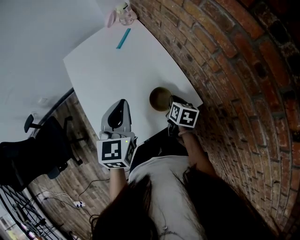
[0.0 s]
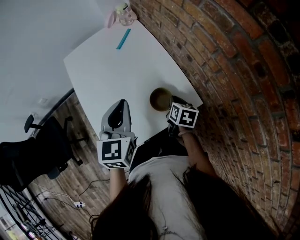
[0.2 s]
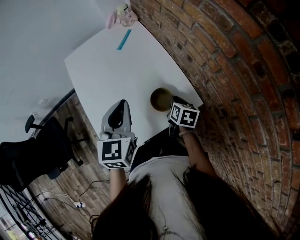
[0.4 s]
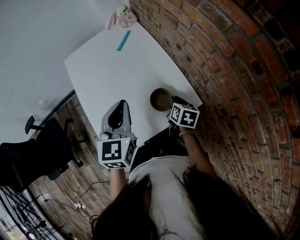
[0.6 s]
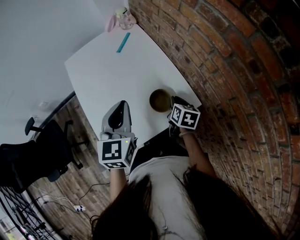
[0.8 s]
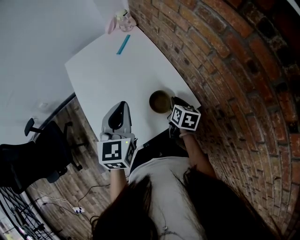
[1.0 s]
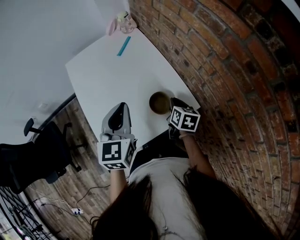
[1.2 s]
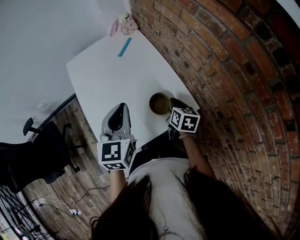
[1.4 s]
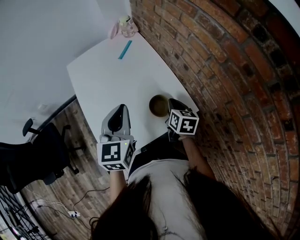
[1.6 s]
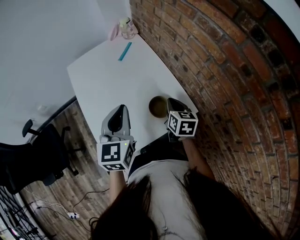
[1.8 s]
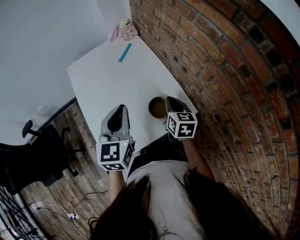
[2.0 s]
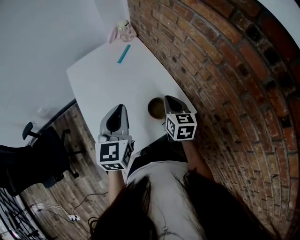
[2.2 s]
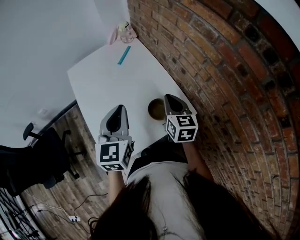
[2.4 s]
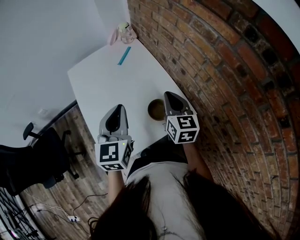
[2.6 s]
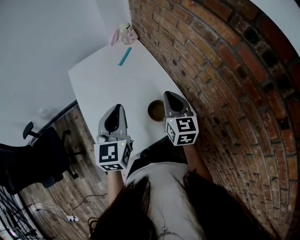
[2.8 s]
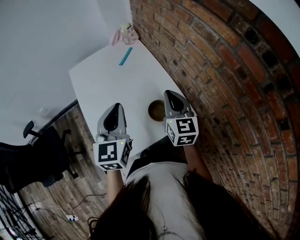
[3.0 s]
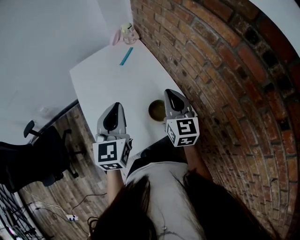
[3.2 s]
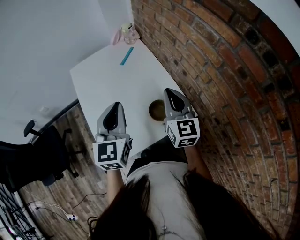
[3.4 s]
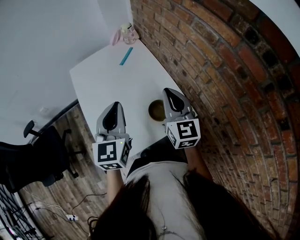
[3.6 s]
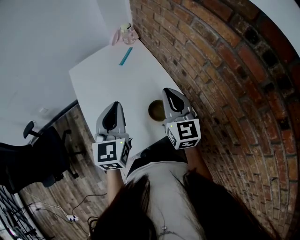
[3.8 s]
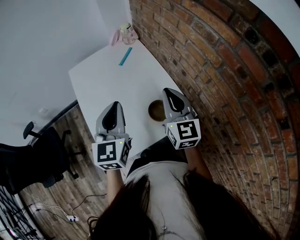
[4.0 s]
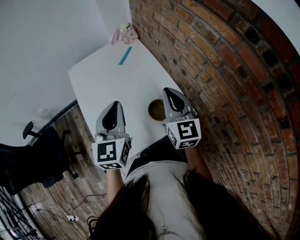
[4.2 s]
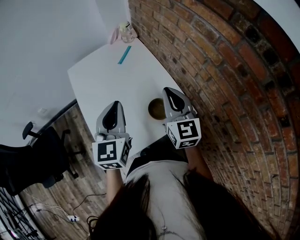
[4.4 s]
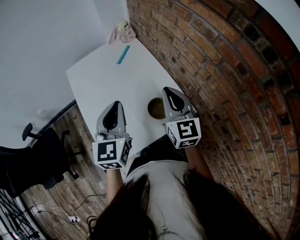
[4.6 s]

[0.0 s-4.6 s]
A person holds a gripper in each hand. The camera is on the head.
0.0 to 1.6 s: The right gripper shifts roughly 5 cm upward.
1.6 to 3.0 s: The right gripper shifts roughly 15 cm upward, and swivels some 30 degrees.
3.0 to 4.6 s: The grippers move only a little.

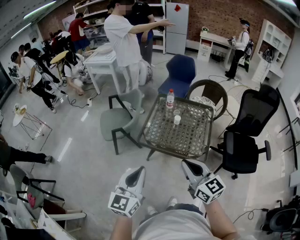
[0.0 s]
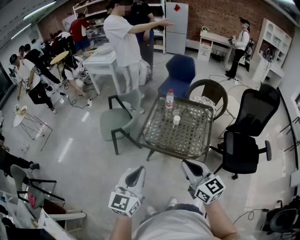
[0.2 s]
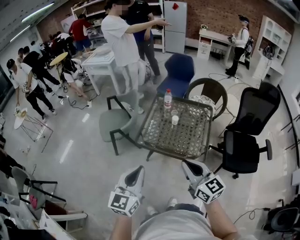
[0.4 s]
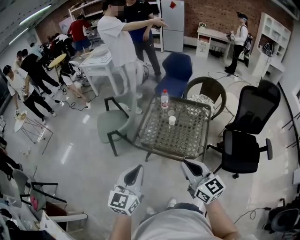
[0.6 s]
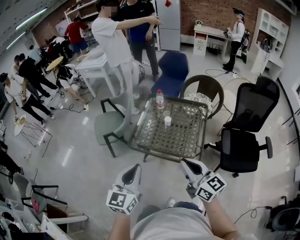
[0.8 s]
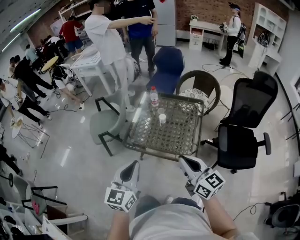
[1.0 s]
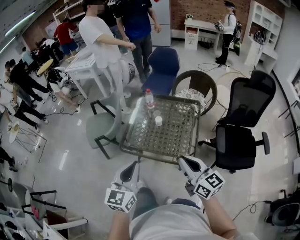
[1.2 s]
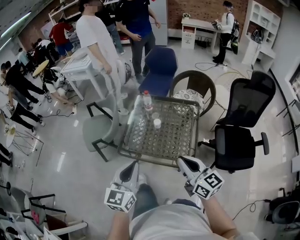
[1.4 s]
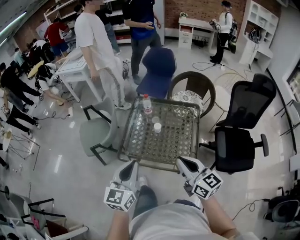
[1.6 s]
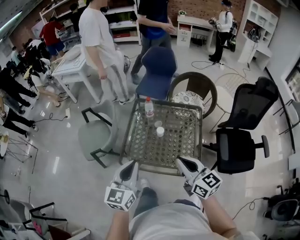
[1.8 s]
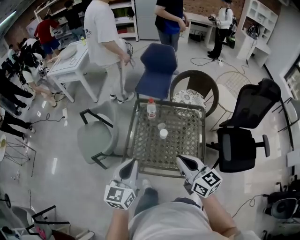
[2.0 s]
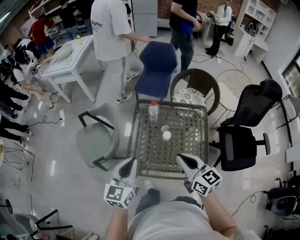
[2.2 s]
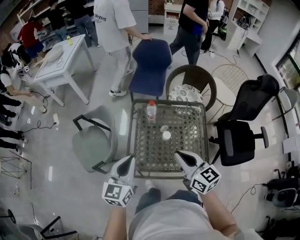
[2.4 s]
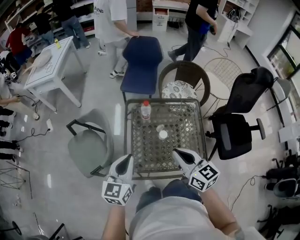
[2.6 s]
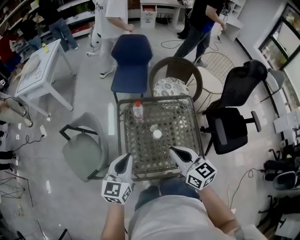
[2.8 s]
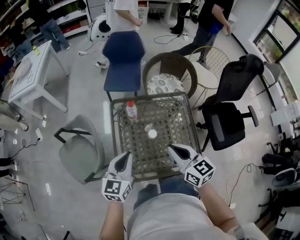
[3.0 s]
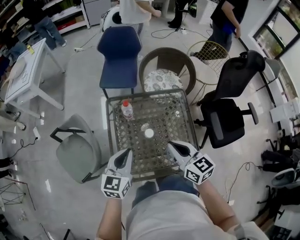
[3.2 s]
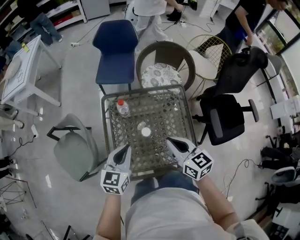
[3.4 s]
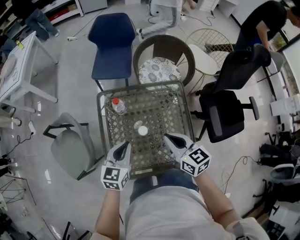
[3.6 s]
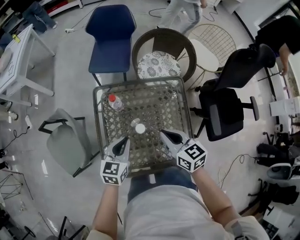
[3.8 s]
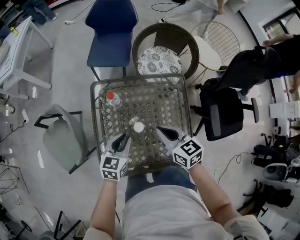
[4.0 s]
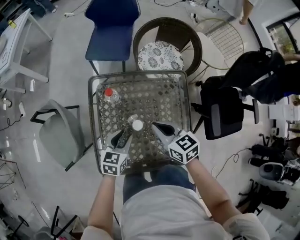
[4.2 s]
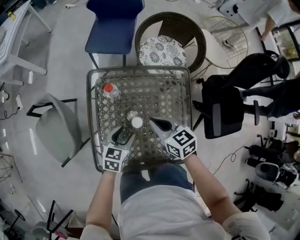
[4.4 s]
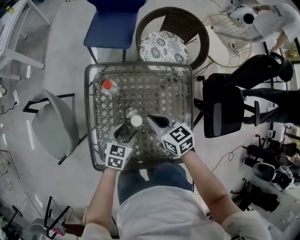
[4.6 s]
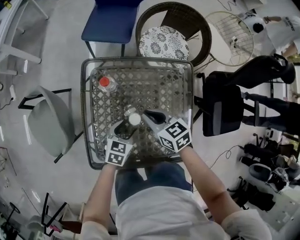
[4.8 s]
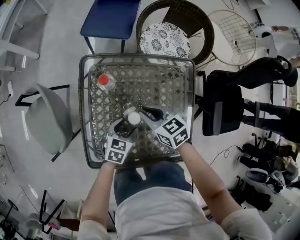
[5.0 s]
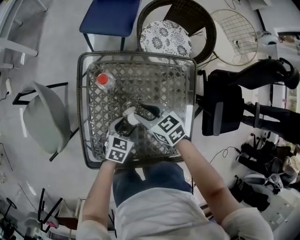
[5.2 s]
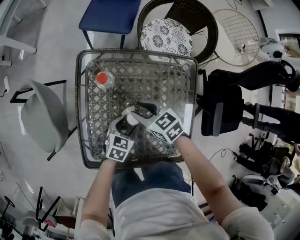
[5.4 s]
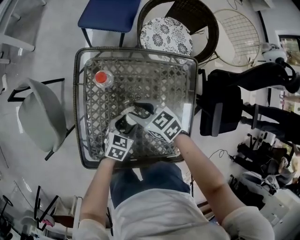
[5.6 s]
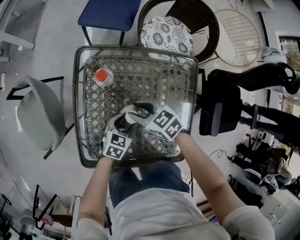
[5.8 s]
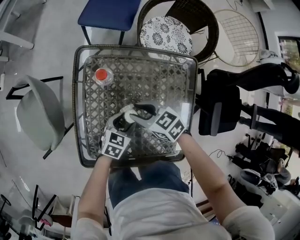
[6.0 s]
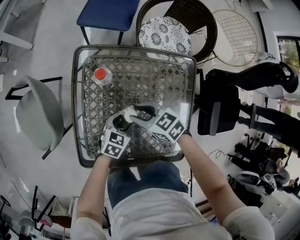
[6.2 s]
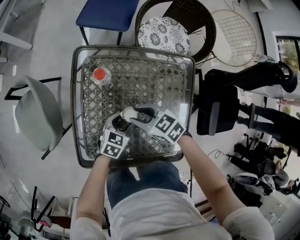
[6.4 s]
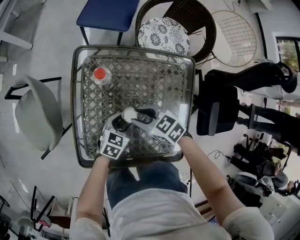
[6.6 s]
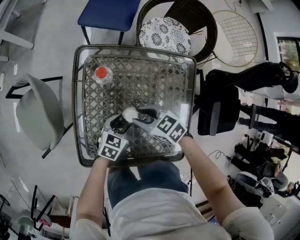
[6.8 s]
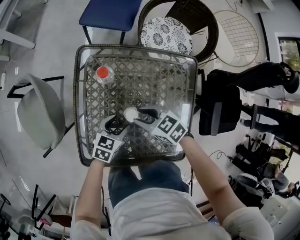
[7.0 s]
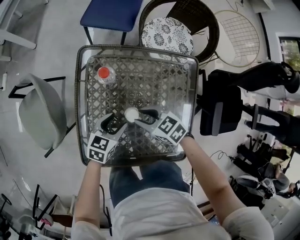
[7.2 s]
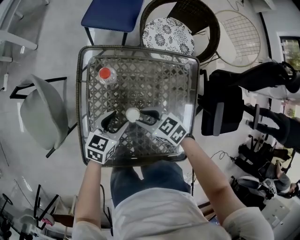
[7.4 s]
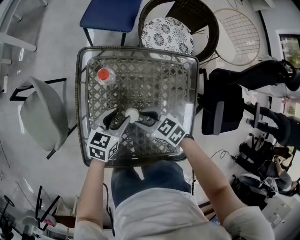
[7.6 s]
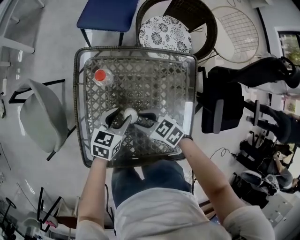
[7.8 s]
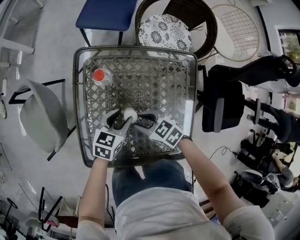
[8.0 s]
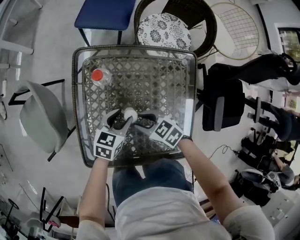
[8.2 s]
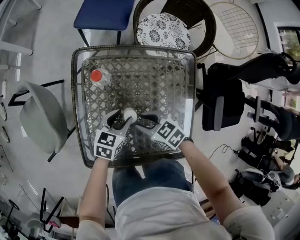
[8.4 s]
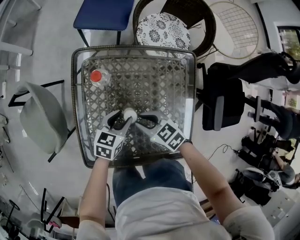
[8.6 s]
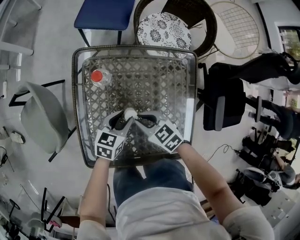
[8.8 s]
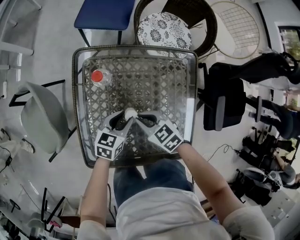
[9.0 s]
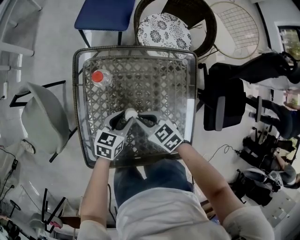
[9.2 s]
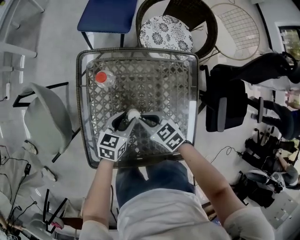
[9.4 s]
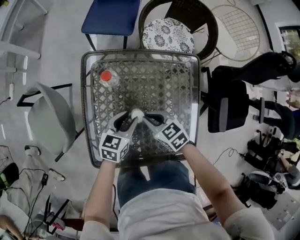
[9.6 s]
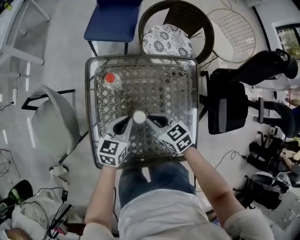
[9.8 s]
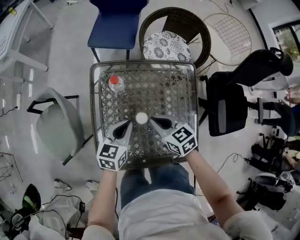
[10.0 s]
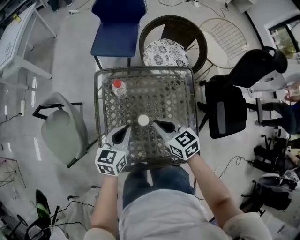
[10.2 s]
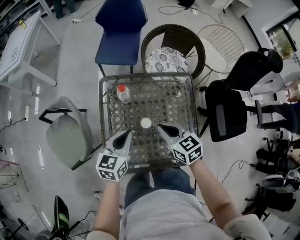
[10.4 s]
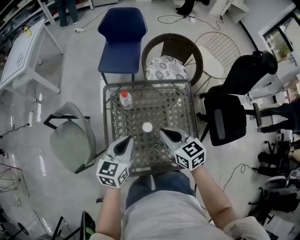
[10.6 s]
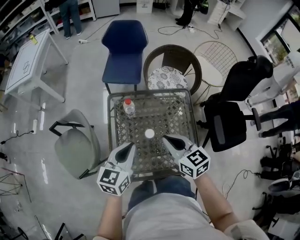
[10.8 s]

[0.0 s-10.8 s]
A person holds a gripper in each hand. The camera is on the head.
0.0 to 1.6 s: The two grippers go about 25 cm forward and to the right.
1.6 to 3.0 s: The two grippers go roughly 25 cm forward. The right gripper changes its angle by some 20 degrees; the left gripper turns by roughly 20 degrees.
3.0 to 4.6 s: The left gripper goes some 30 cm downward and to the right, changes its angle by some 30 degrees, and opens its fingers. The right gripper heads downward and forward, covering about 25 cm, and swivels some 20 degrees.
4.6 to 6.2 s: The grippers both shift downward by about 10 cm. The right gripper rotates approximately 20 degrees, and opens up.
6.2 to 7.8 s: The left gripper heads upward, covering approximately 5 cm.
7.8 to 9.2 s: The right gripper closes up.
9.2 to 10.8 s: Both grippers travel together upward, roughly 30 cm. The left gripper swivels approximately 20 degrees, and closes up, while the right gripper rotates approximately 30 degrees.

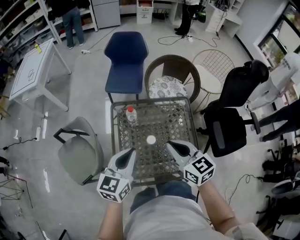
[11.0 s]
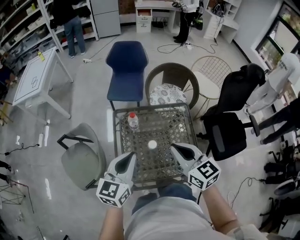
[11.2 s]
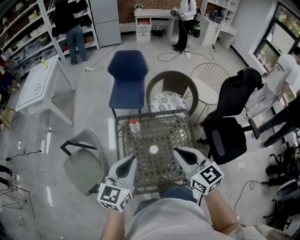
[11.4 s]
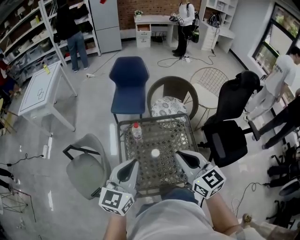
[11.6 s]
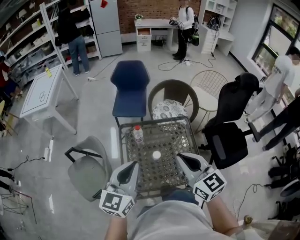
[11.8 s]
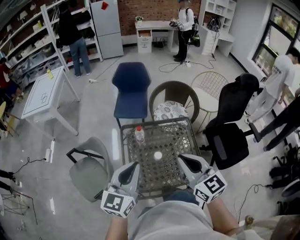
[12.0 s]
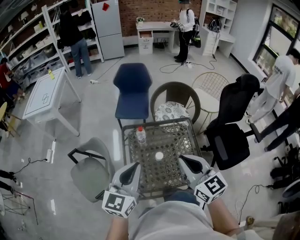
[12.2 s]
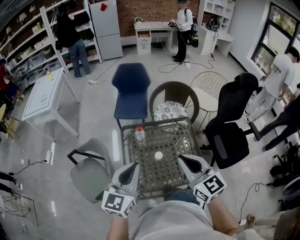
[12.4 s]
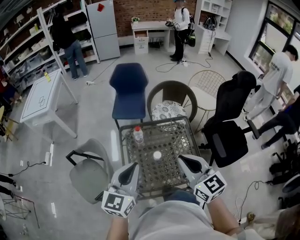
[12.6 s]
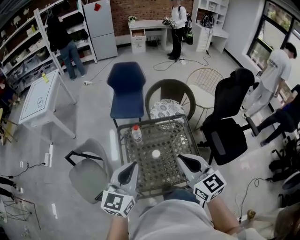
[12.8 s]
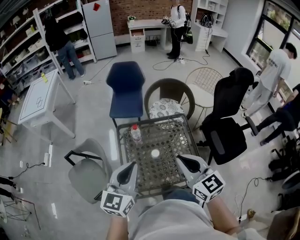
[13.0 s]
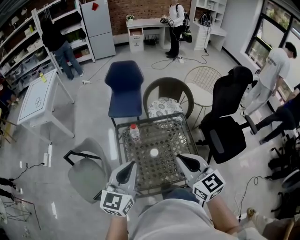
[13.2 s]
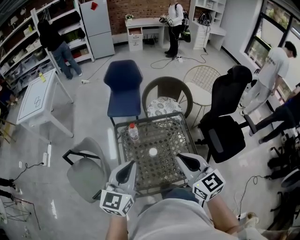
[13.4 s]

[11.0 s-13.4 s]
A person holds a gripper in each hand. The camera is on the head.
11.0 to 12.2 s: Both grippers travel together upward and backward, about 15 cm.
12.2 to 13.4 s: The grippers make only small movements.

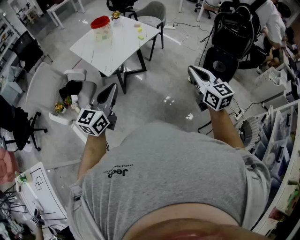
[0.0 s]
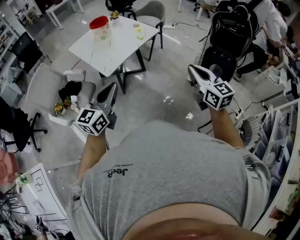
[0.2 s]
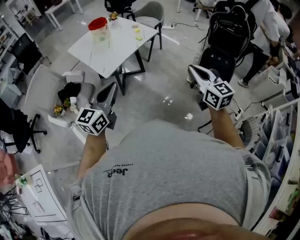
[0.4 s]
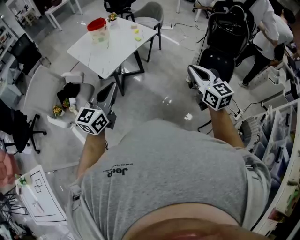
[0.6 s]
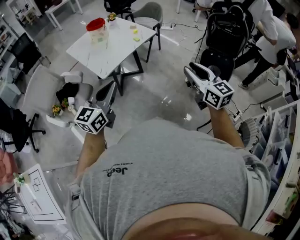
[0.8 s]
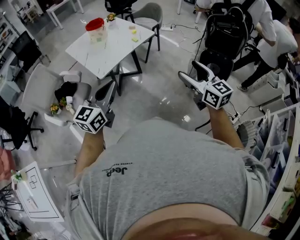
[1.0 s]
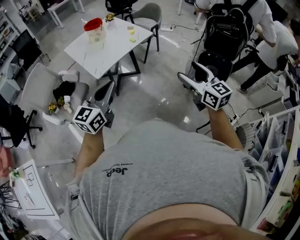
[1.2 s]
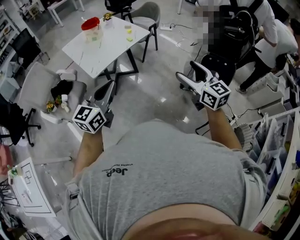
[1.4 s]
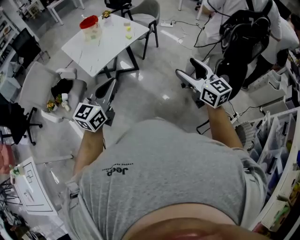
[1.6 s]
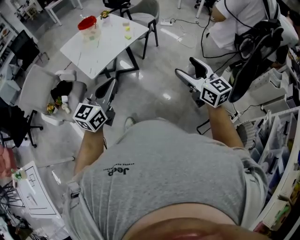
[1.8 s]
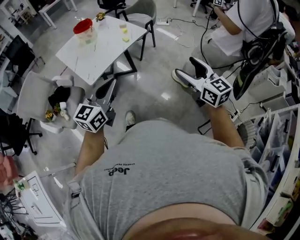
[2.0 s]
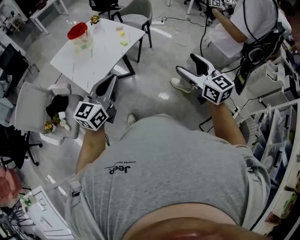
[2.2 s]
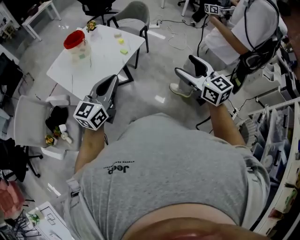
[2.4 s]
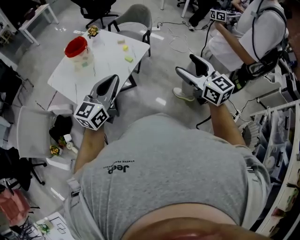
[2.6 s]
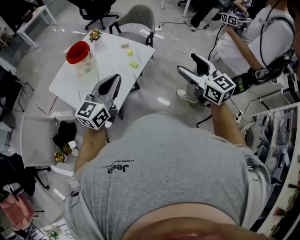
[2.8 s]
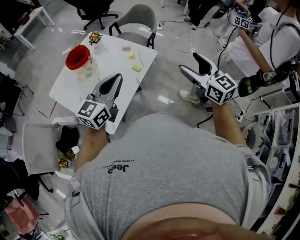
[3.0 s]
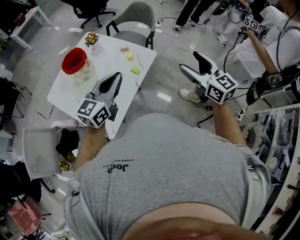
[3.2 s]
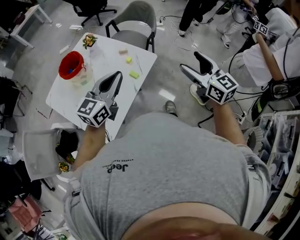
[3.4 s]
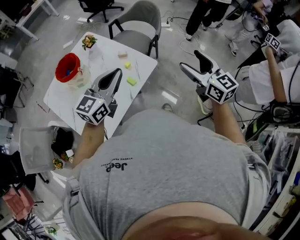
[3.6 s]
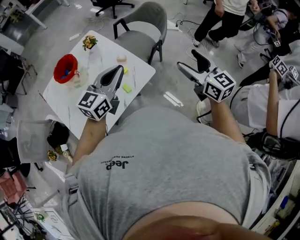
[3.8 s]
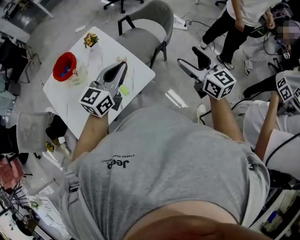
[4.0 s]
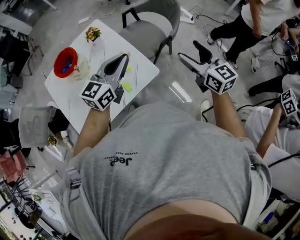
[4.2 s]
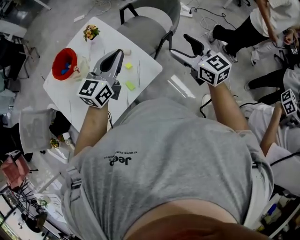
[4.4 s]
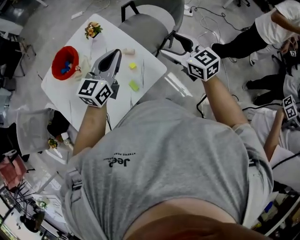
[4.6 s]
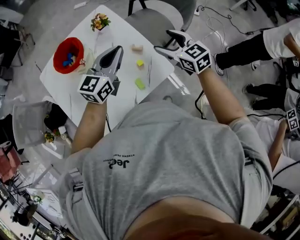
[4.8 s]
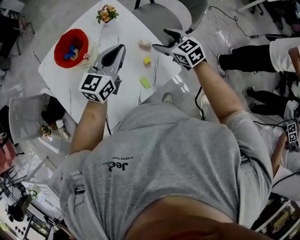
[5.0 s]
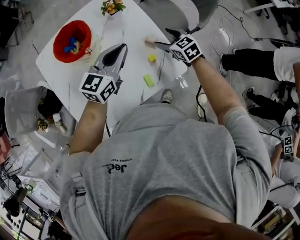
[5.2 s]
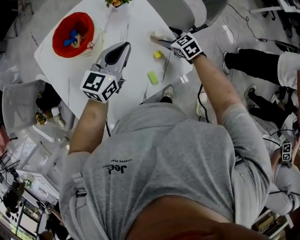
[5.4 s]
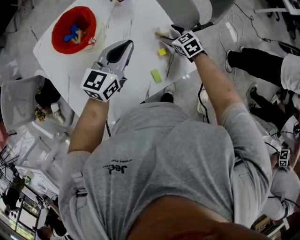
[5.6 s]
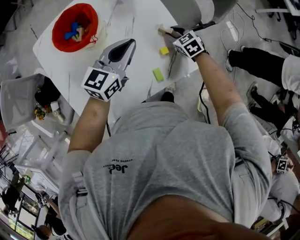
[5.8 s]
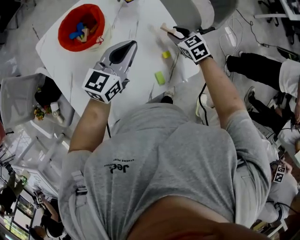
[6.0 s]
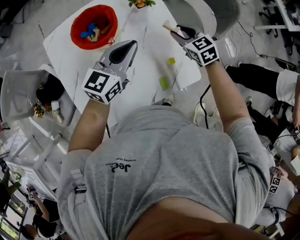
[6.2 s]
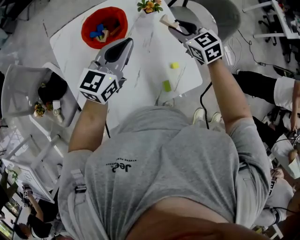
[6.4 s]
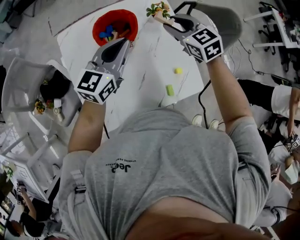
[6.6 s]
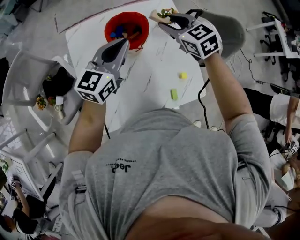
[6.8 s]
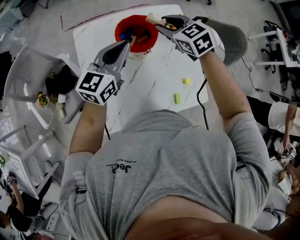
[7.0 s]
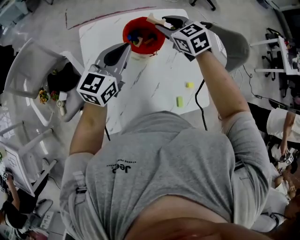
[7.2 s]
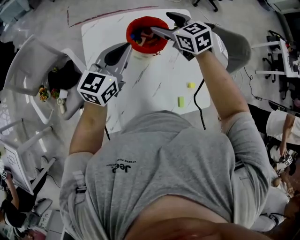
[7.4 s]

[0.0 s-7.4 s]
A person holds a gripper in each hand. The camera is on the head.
0.0 to 1.4 s: Both grippers travel together to the right, roughly 10 cm. The right gripper opens.
1.4 to 3.0 s: Both grippers are carried forward, about 40 cm.
3.0 to 4.4 s: The two grippers go about 35 cm forward. The left gripper swivels roughly 20 degrees. The right gripper rotates some 20 degrees.
4.4 to 6.0 s: The right gripper moves downward, to the left and forward, approximately 40 cm, angles its fingers downward, by approximately 30 degrees, and closes its fingers, while the left gripper moves to the left, downward and forward, roughly 25 cm.
6.0 to 7.4 s: The right gripper goes roughly 40 cm to the left and upward, rotates approximately 20 degrees, and opens up, while the left gripper heads to the left, covering approximately 25 cm, and rotates about 20 degrees.
